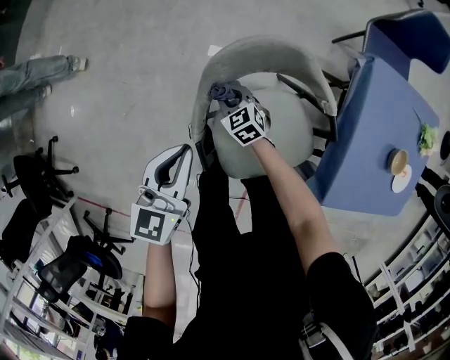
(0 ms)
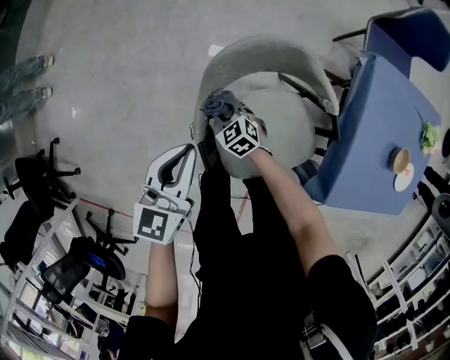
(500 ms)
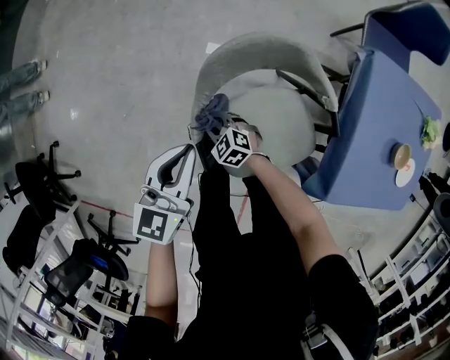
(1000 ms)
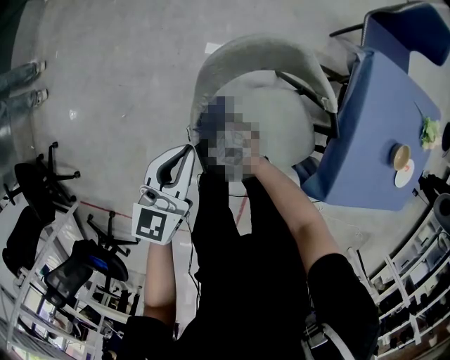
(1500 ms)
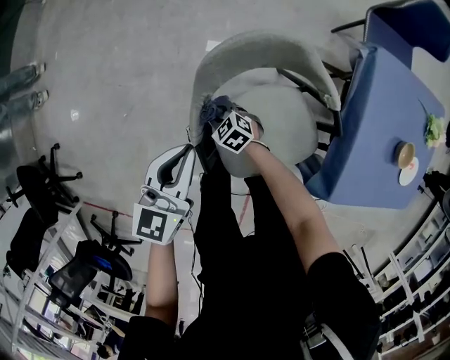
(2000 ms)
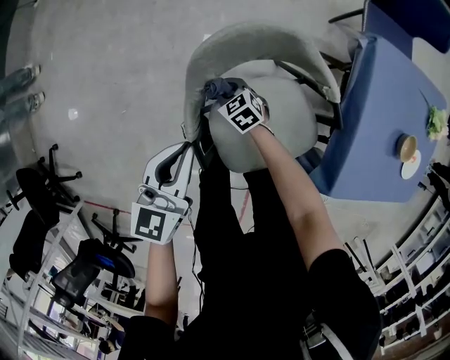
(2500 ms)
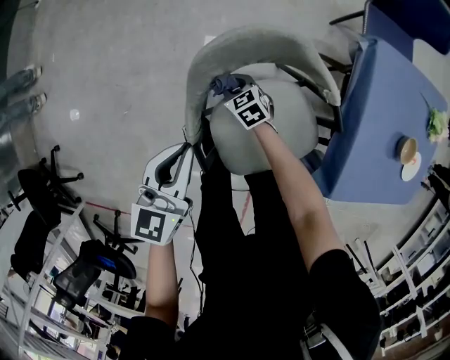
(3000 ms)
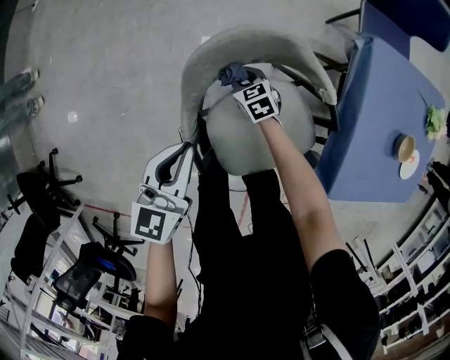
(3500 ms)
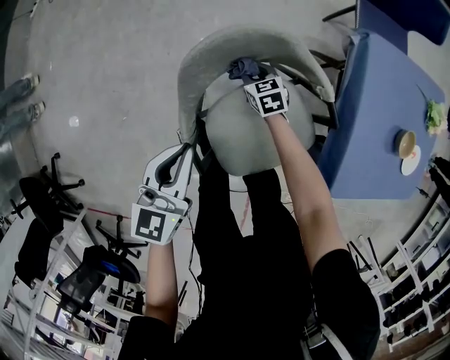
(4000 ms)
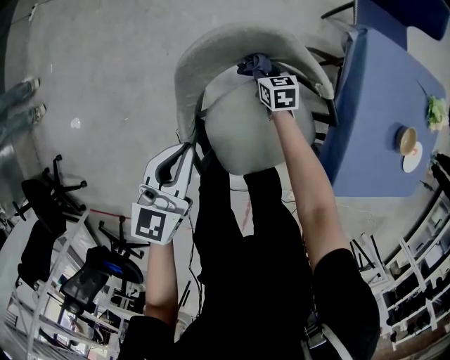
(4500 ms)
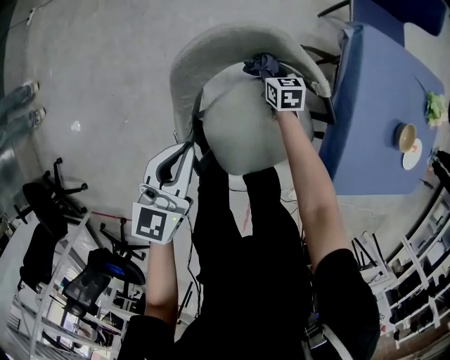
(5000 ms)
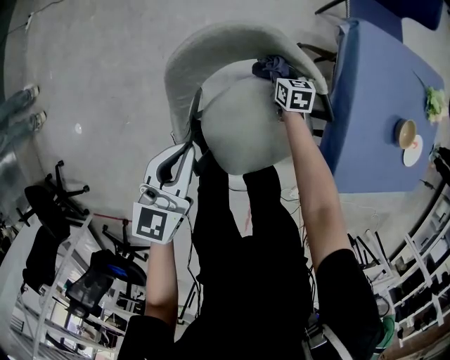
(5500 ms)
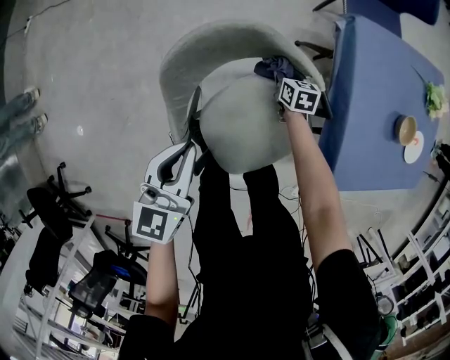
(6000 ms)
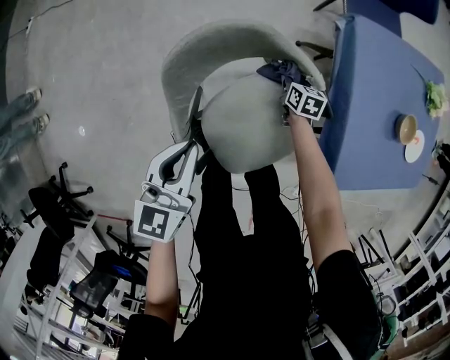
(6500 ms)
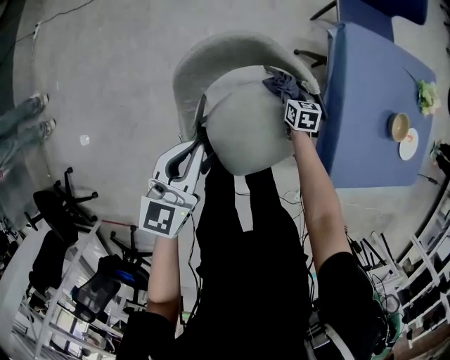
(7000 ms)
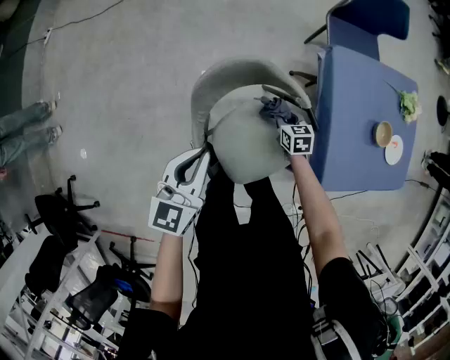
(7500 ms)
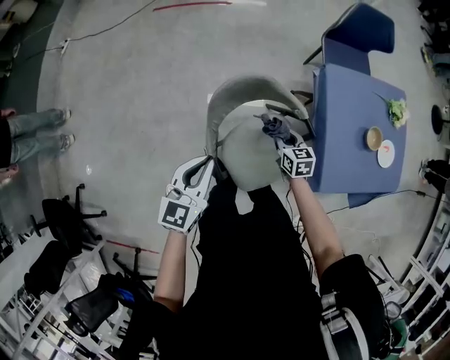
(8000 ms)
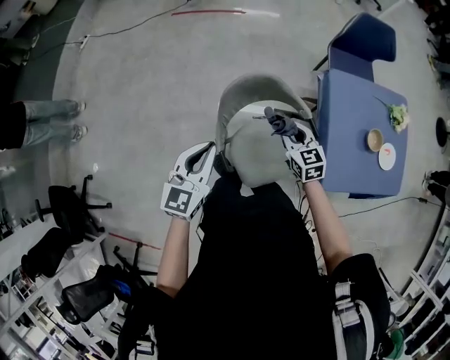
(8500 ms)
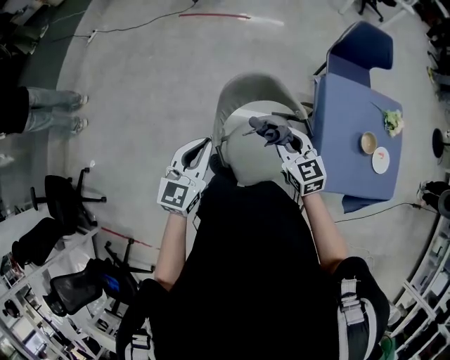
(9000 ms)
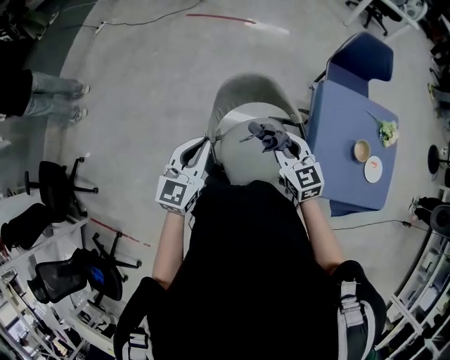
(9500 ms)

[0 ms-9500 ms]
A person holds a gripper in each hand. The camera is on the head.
0 ms to 2000 ms: The right gripper travels backward, downward and to the left by some 10 cm.
2000 ms to 4000 ms: The right gripper is displaced to the right and forward by approximately 20 cm, and turns by about 30 degrees.
4000 ms to 5500 ms: The right gripper heads to the right, covering roughly 15 cm, and turns by roughly 20 degrees.
5500 ms to 7500 ms: The right gripper heads upward and backward, covering approximately 15 cm, while the left gripper shifts about 15 cm upward.
7500 ms to 9500 ms: The left gripper moves upward and backward, about 20 cm. Meanwhile the right gripper shifts roughly 40 cm upward, and changes its angle by some 40 degrees.

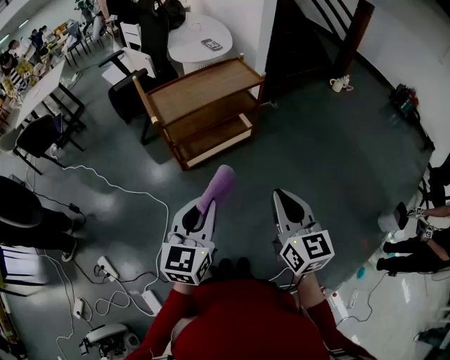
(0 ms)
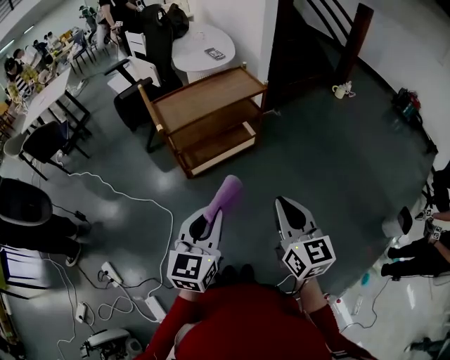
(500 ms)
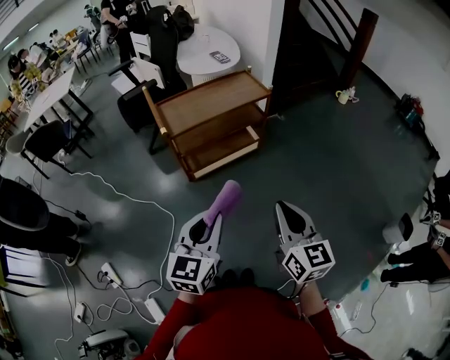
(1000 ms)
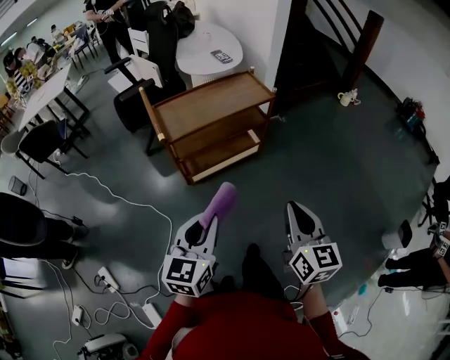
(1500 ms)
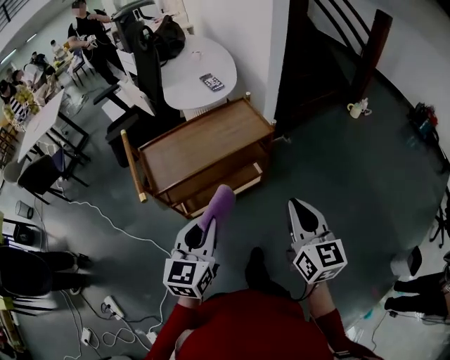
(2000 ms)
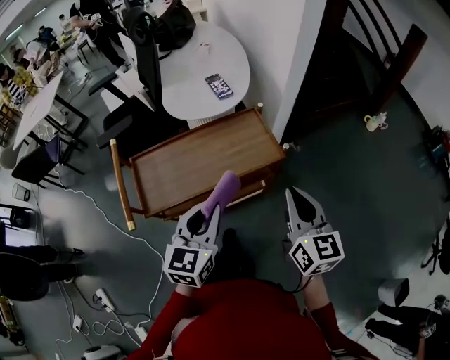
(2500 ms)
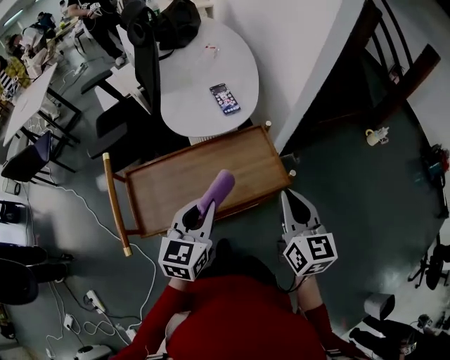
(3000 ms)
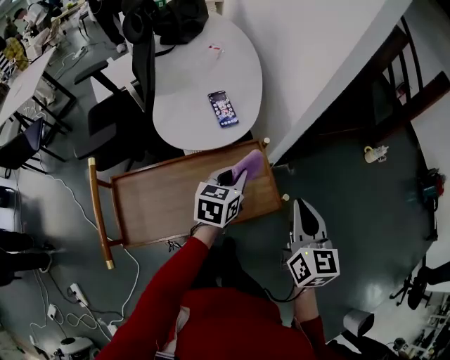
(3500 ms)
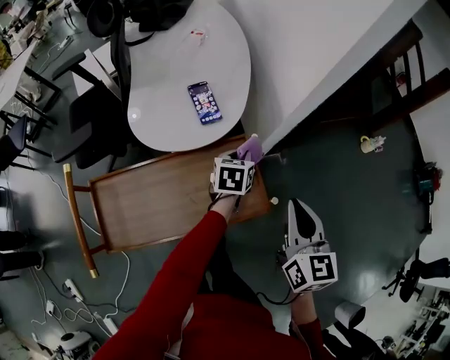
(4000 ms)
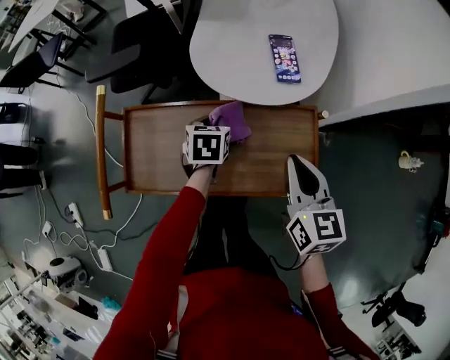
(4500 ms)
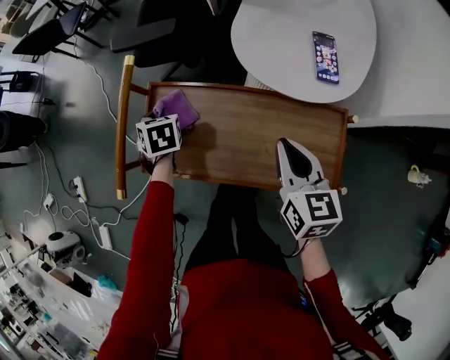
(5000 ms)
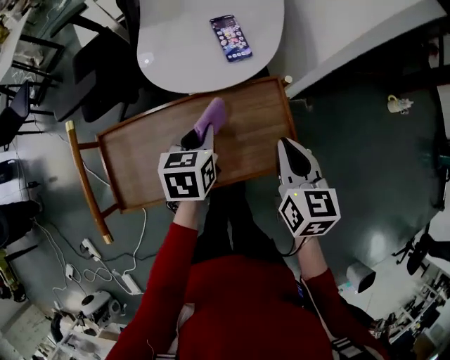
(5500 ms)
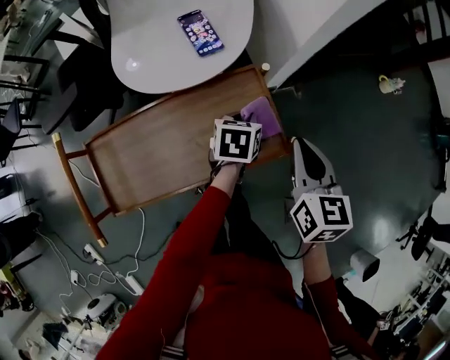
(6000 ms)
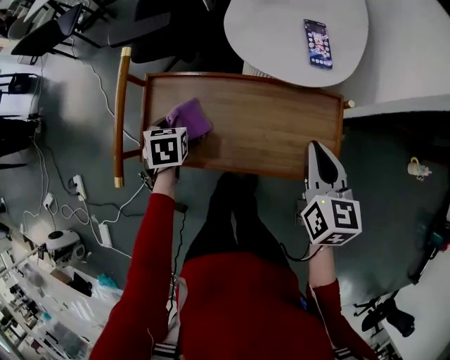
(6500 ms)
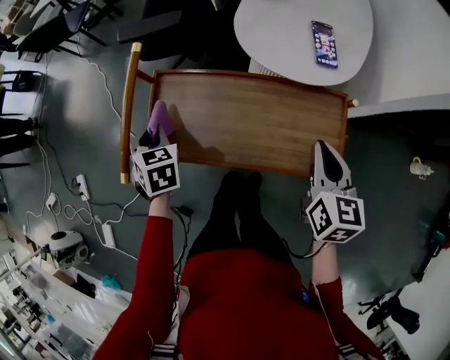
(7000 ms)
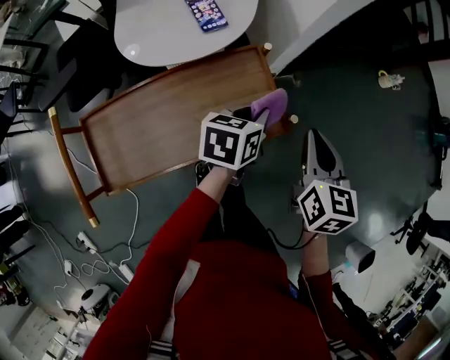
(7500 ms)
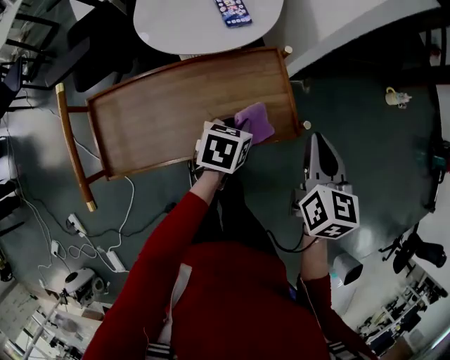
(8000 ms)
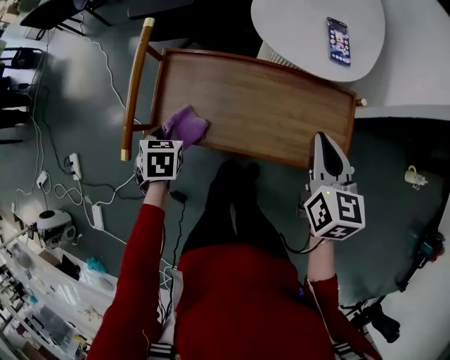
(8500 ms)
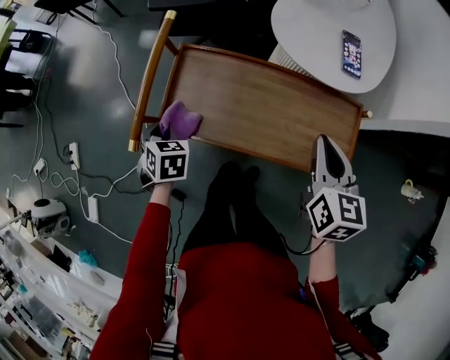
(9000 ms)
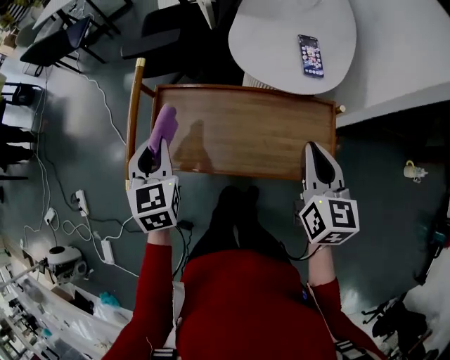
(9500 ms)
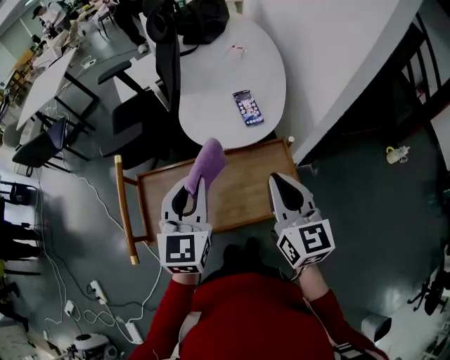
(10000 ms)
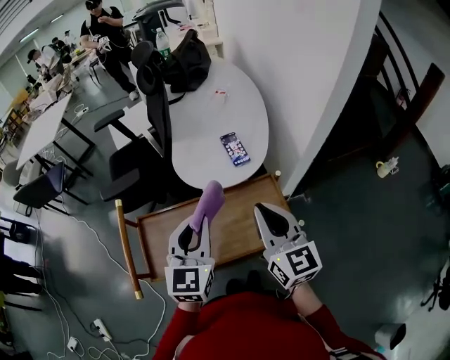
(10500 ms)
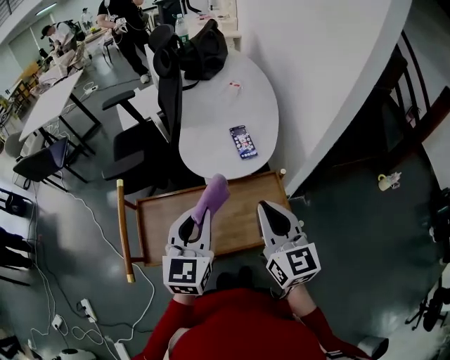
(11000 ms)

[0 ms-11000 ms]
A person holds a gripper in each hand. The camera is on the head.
0 ms to 2000 ms: Both grippers travel together forward, some 25 cm.
2000 ms to 3500 ms: Both grippers travel together forward, approximately 35 cm.
3500 ms to 5500 ms: The left gripper turns by about 20 degrees.
5500 ms to 7500 ms: The right gripper changes place by roughly 10 cm, while the left gripper goes downward and returns, some 5 cm each way, and swivels some 30 degrees.
7500 ms to 9000 ms: The right gripper ends up roughly 20 cm from where it was, and rotates some 30 degrees; the left gripper ends up roughly 50 cm from where it was, and swivels about 70 degrees.
9000 ms to 11000 ms: The right gripper moves upward, some 10 cm, and swivels some 30 degrees, while the left gripper changes place by about 35 cm, and points its fingers roughly 50 degrees further upward.

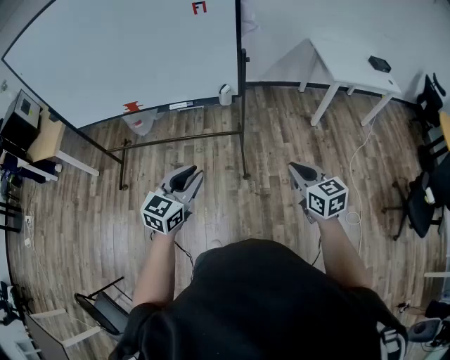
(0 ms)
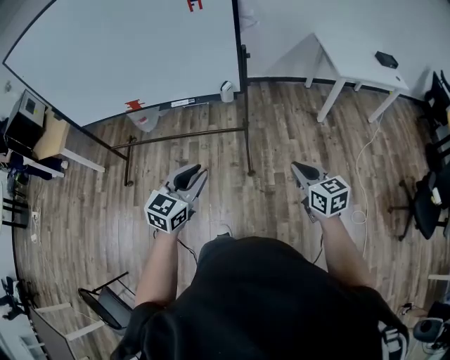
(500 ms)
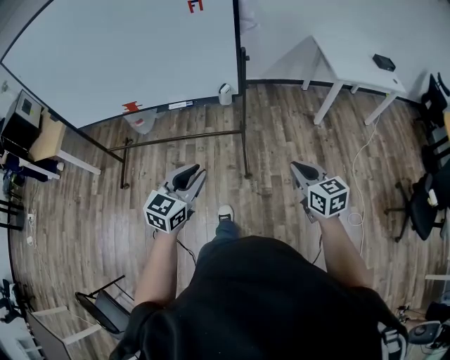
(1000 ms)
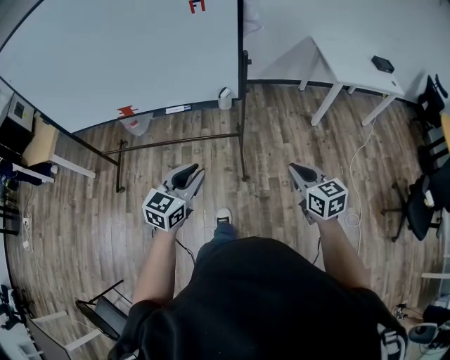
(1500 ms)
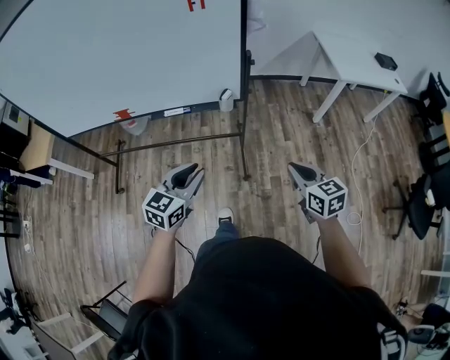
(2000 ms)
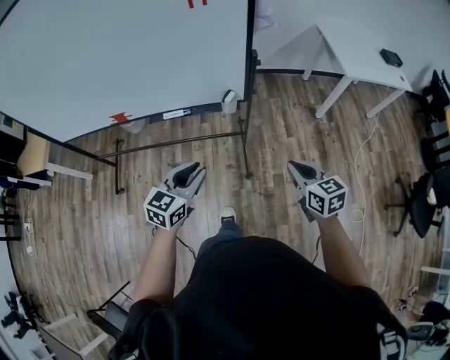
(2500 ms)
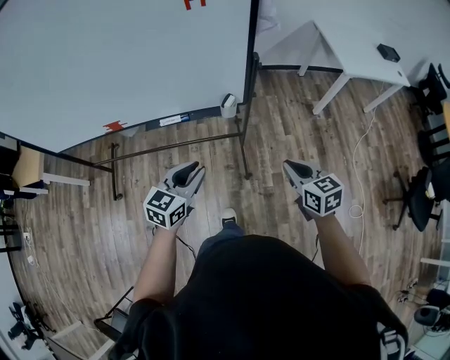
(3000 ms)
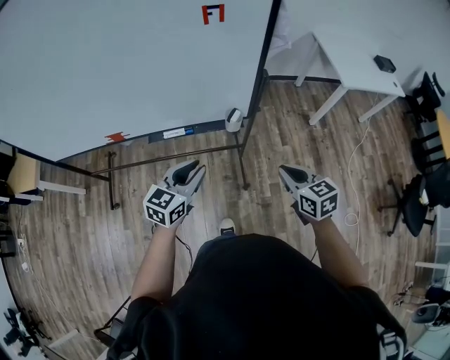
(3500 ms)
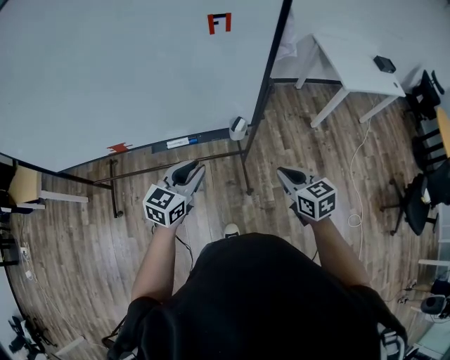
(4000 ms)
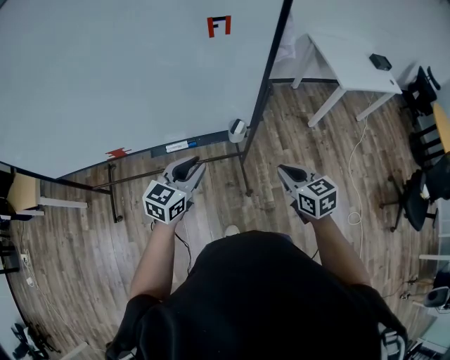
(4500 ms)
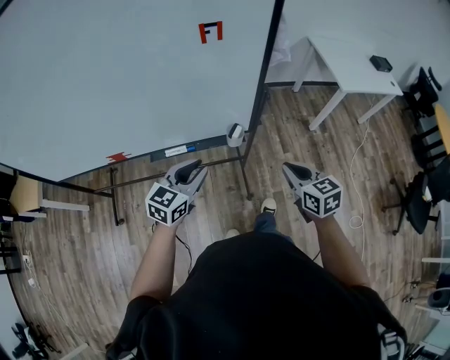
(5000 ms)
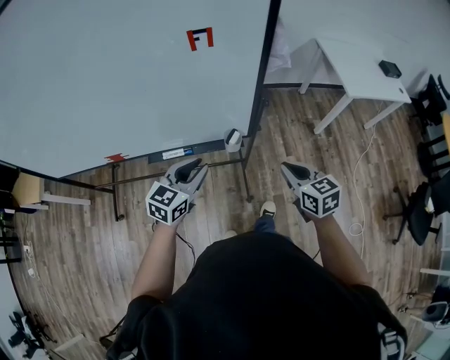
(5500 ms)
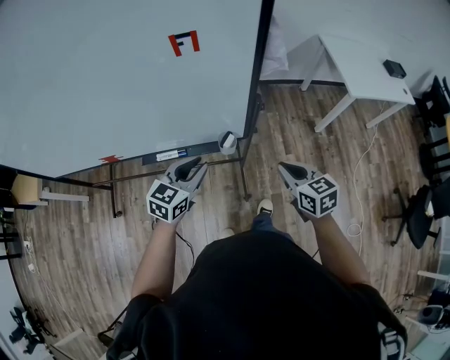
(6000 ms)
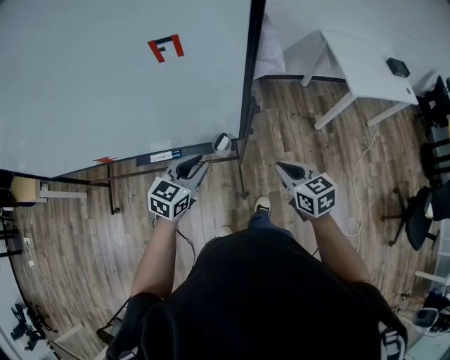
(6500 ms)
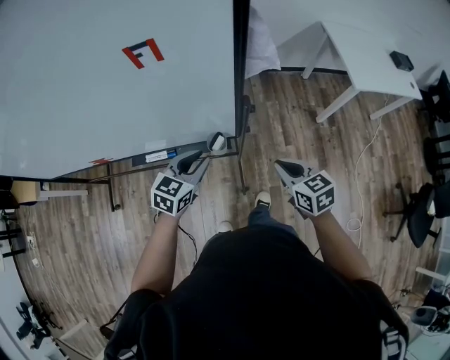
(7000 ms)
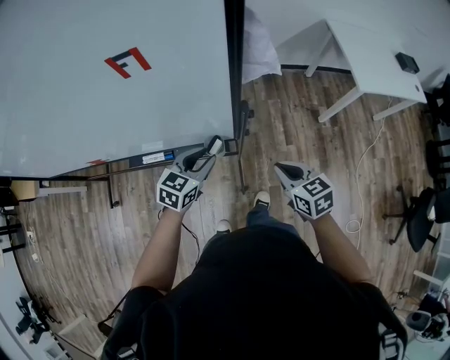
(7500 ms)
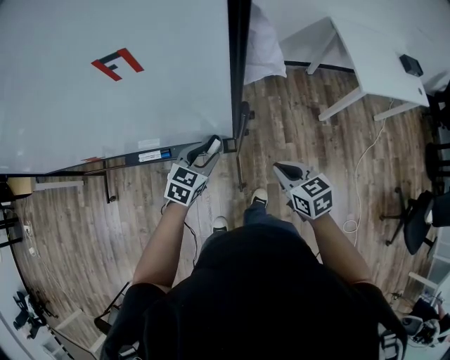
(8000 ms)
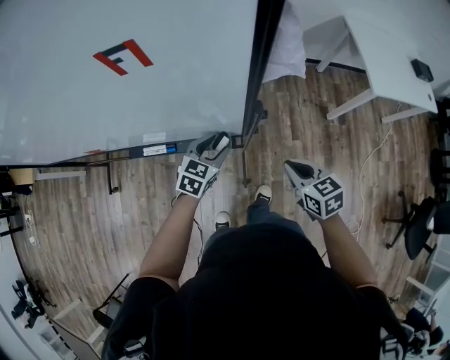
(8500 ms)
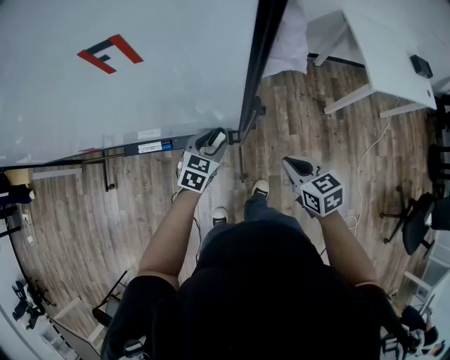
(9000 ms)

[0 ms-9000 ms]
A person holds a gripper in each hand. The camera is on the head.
0 ms to 2000 ms: Both grippers travel together forward, some 10 cm.
2000 ms to 4500 ms: Both grippers travel together forward and to the left, about 20 cm.
4500 ms to 7000 ms: The left gripper heads forward, to the right and downward, covering approximately 20 cm; the right gripper moves forward and to the right, some 15 cm.
7000 ms to 9000 ms: The left gripper heads downward and forward, covering about 15 cm, and opens; the right gripper goes approximately 5 cm downward.
